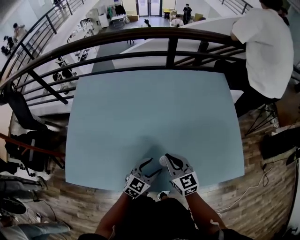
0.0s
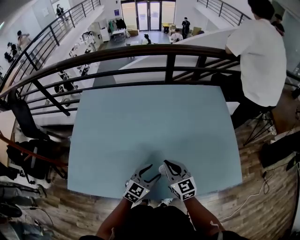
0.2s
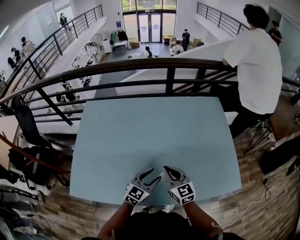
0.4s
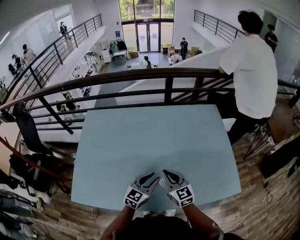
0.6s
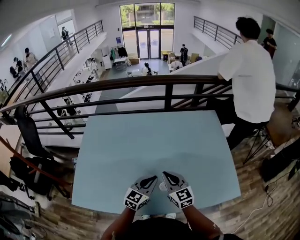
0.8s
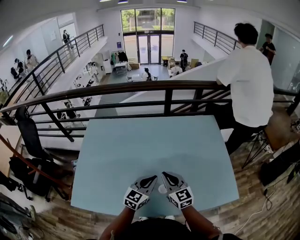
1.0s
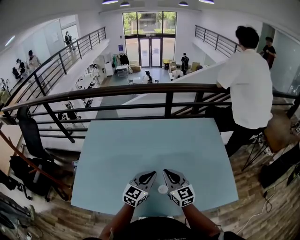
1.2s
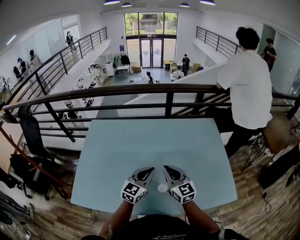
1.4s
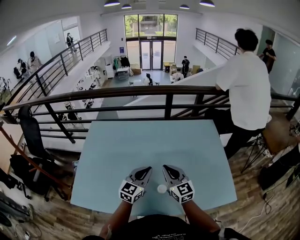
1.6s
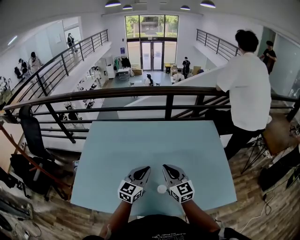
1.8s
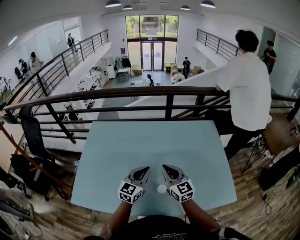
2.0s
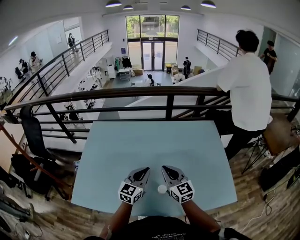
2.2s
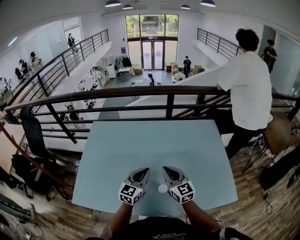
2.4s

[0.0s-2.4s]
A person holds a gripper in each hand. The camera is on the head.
0.0s to 1.2s: The left gripper is displaced upward by roughly 15 cm, and closes its fingers; the right gripper heads upward, covering about 10 cm.
1.2s to 2.4s: The grippers make only small movements.

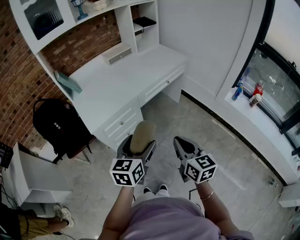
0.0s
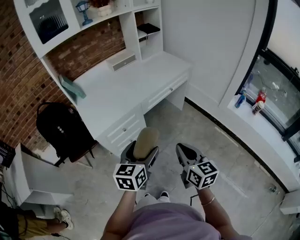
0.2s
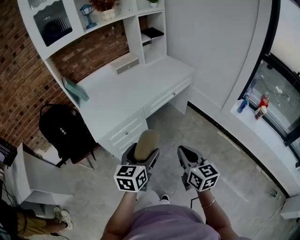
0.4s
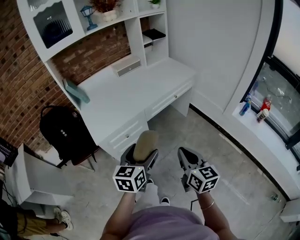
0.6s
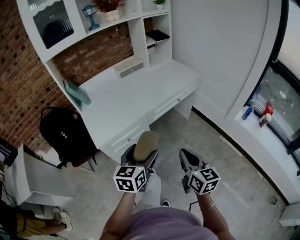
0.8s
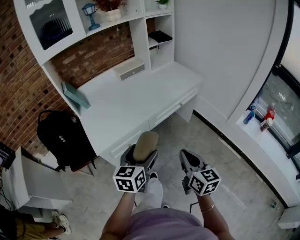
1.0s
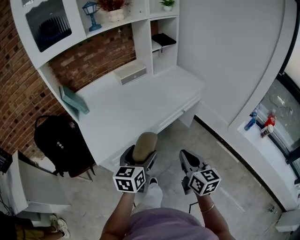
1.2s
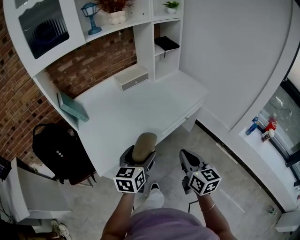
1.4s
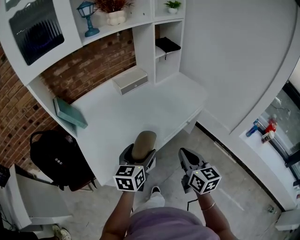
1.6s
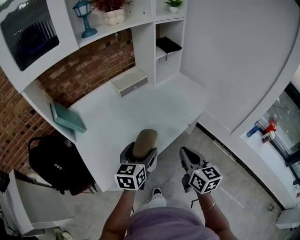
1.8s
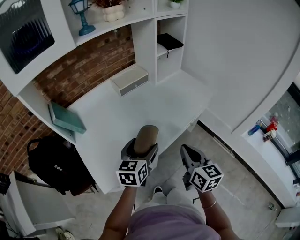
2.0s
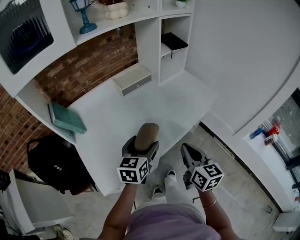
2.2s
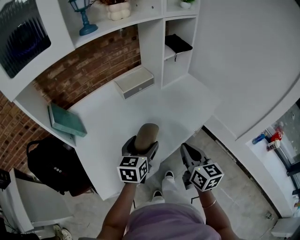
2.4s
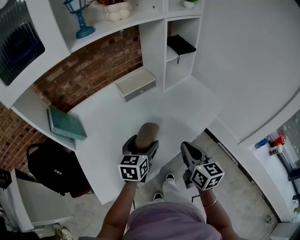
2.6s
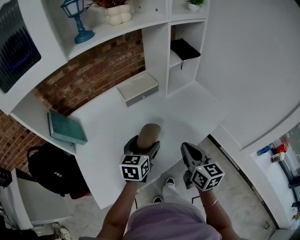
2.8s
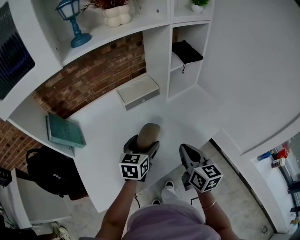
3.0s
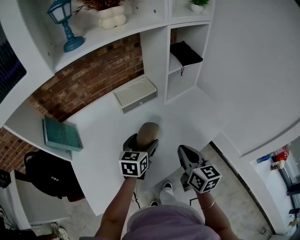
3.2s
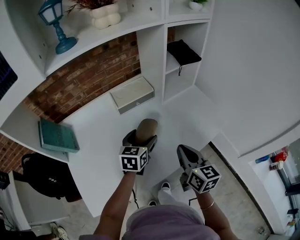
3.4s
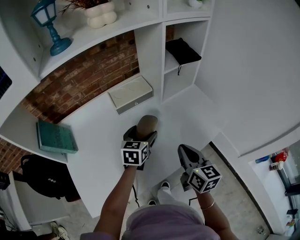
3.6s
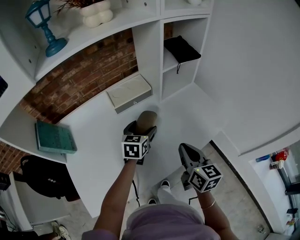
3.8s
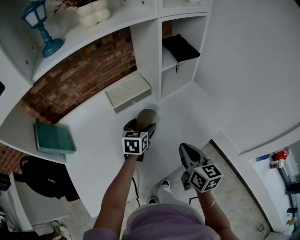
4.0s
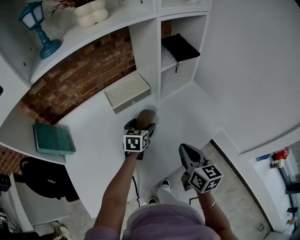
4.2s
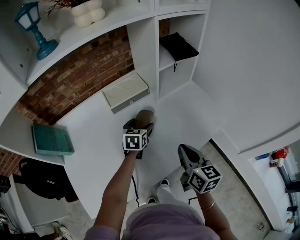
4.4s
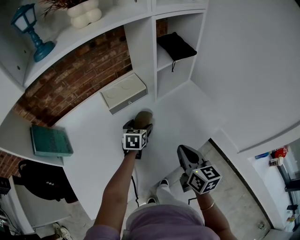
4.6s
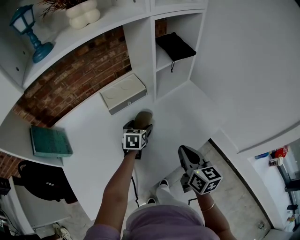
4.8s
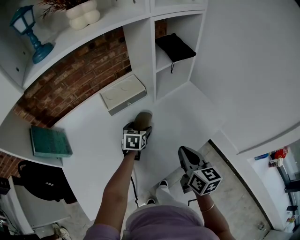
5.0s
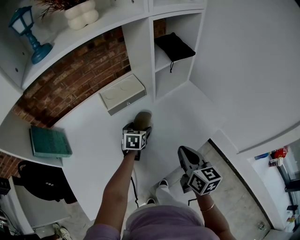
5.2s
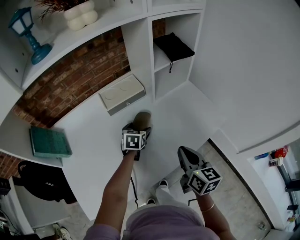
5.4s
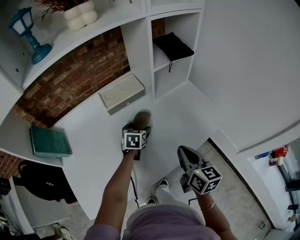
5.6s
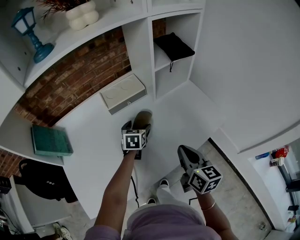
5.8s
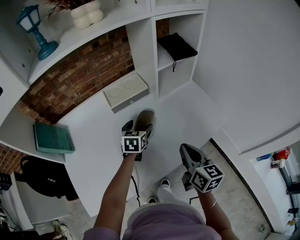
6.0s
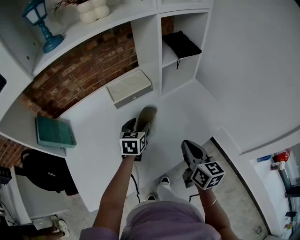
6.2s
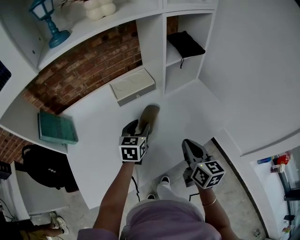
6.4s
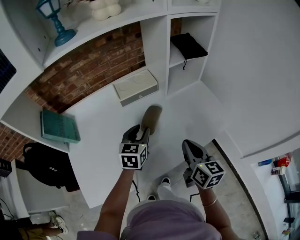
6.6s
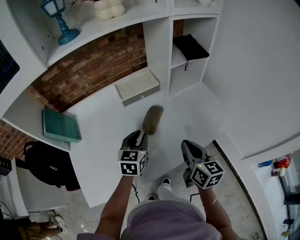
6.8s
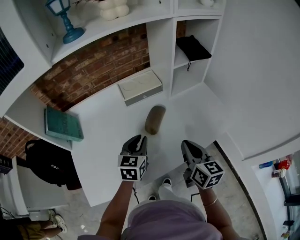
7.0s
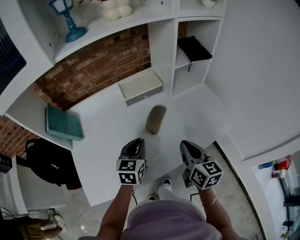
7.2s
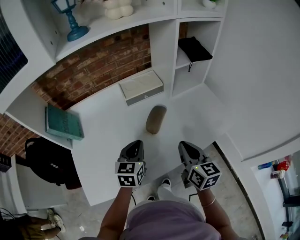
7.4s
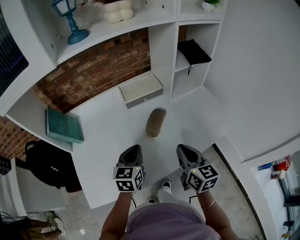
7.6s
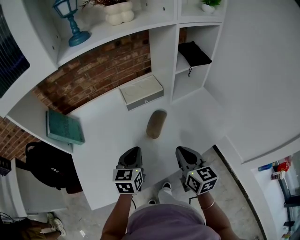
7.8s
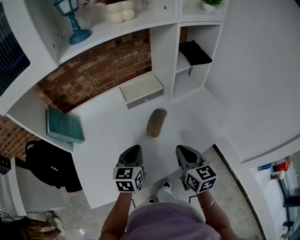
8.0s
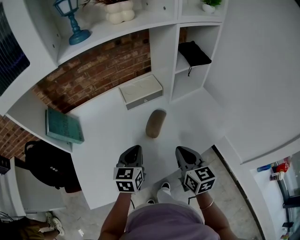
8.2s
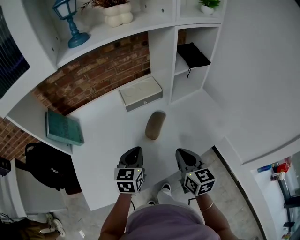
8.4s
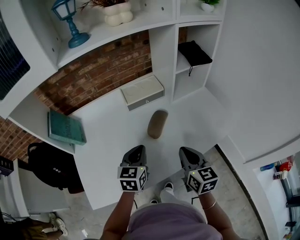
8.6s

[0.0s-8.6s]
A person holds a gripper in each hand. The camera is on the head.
0.0s to 1.4s: The grippers both shift forward by approximately 20 cm.
1.4s to 2.8s: Both grippers travel together forward, roughly 25 cm.
2.8s to 4.4s: The right gripper is displaced forward and to the right by about 10 cm; the left gripper heads forward and downward, covering about 20 cm.
4.4s to 5.8s: The grippers stay close to where they were, moving slightly.
5.8s to 7.2s: The left gripper travels backward, upward and to the left by approximately 20 cm, and closes its fingers.
7.2s to 8.6s: The grippers move only a little.

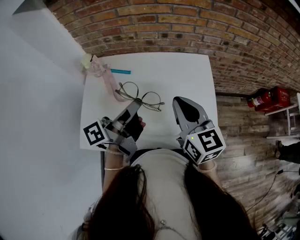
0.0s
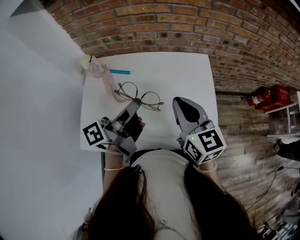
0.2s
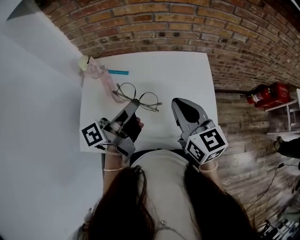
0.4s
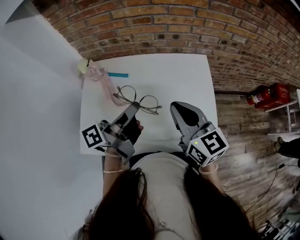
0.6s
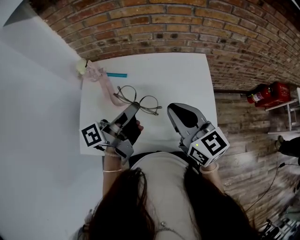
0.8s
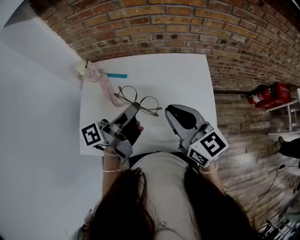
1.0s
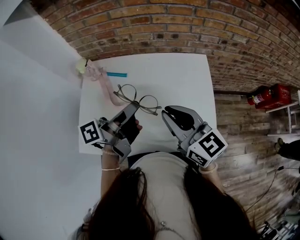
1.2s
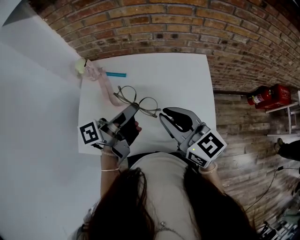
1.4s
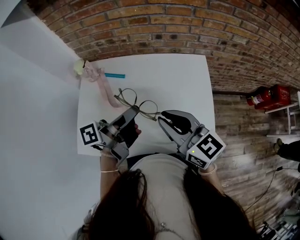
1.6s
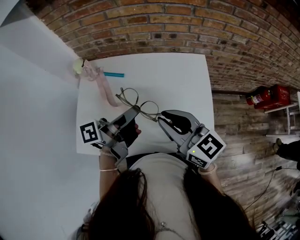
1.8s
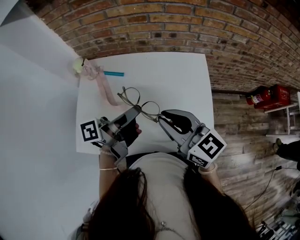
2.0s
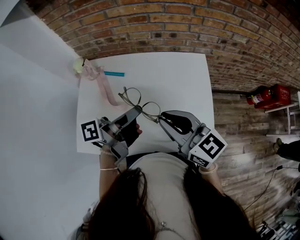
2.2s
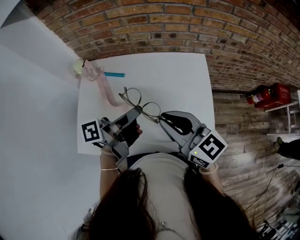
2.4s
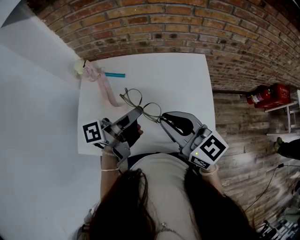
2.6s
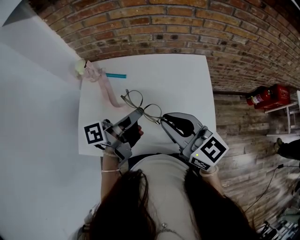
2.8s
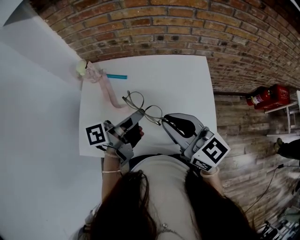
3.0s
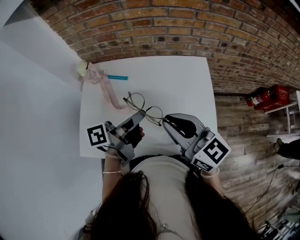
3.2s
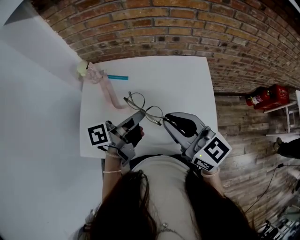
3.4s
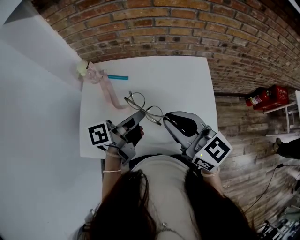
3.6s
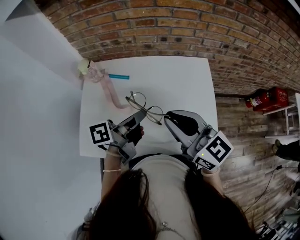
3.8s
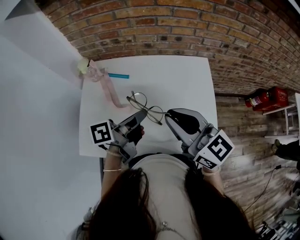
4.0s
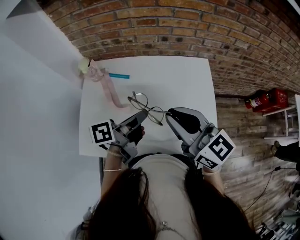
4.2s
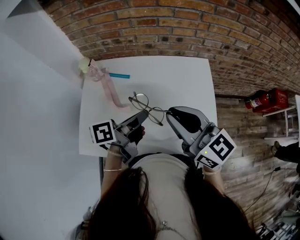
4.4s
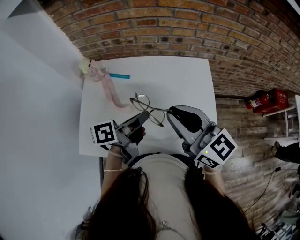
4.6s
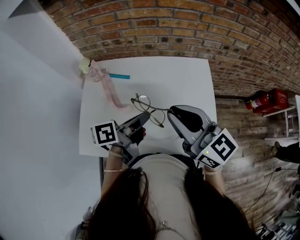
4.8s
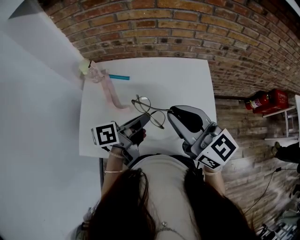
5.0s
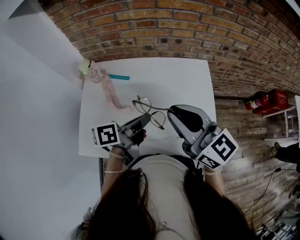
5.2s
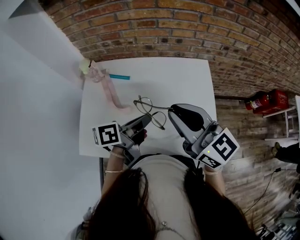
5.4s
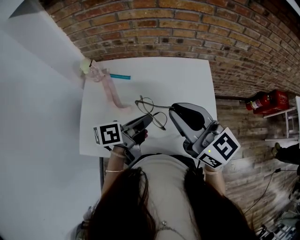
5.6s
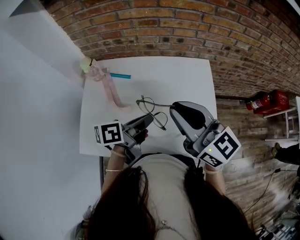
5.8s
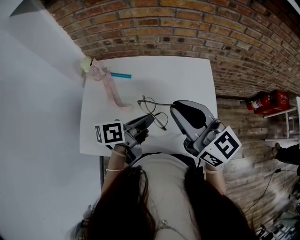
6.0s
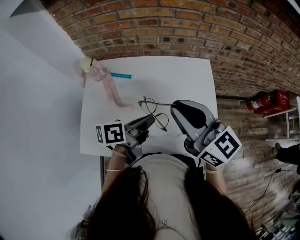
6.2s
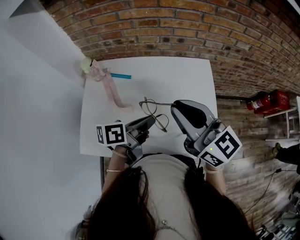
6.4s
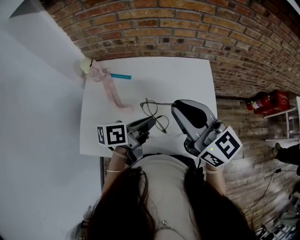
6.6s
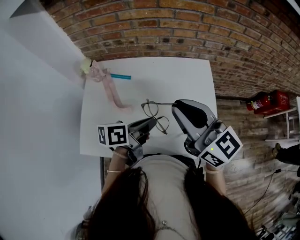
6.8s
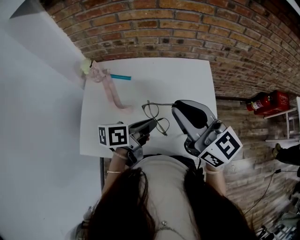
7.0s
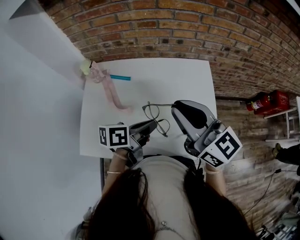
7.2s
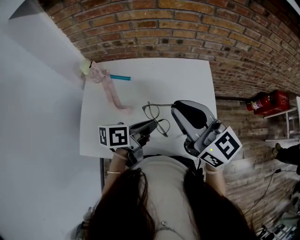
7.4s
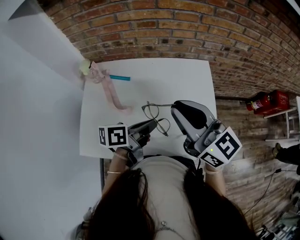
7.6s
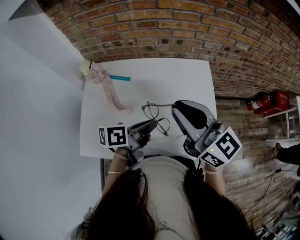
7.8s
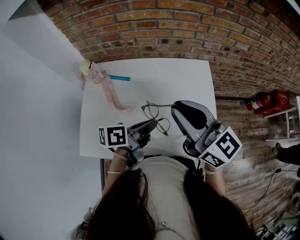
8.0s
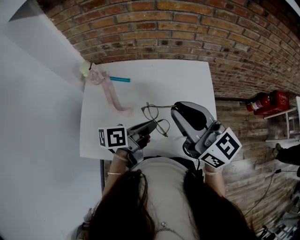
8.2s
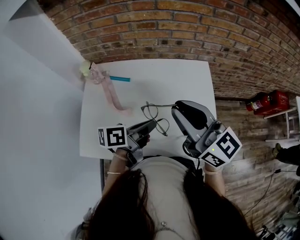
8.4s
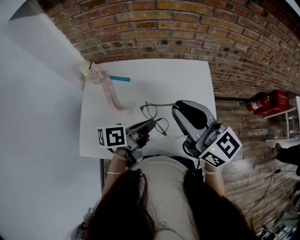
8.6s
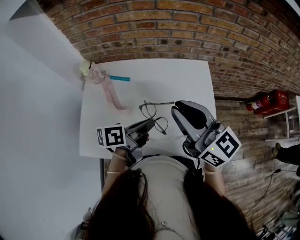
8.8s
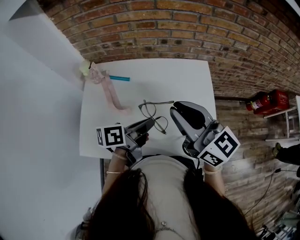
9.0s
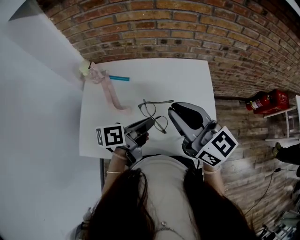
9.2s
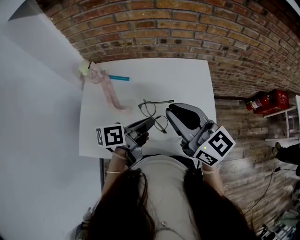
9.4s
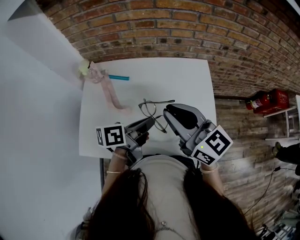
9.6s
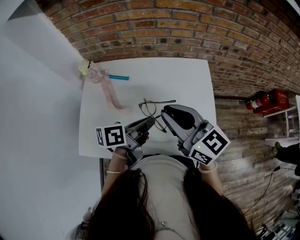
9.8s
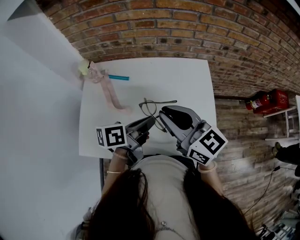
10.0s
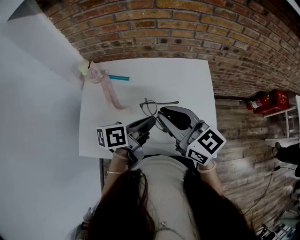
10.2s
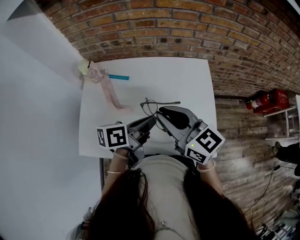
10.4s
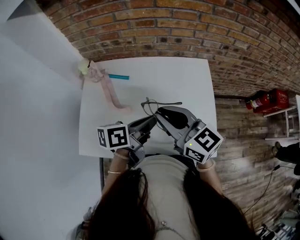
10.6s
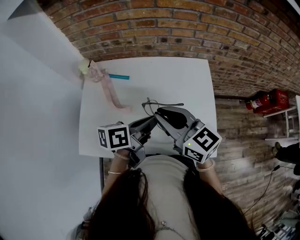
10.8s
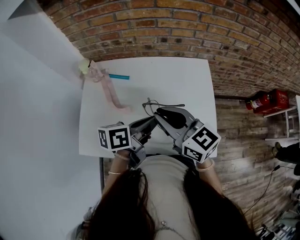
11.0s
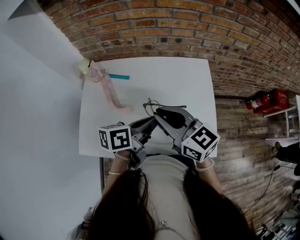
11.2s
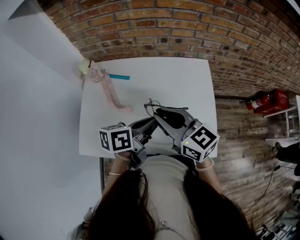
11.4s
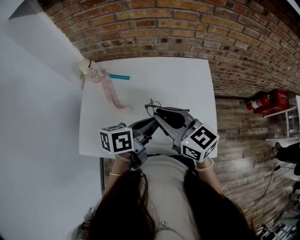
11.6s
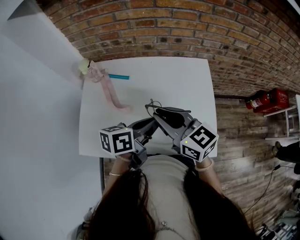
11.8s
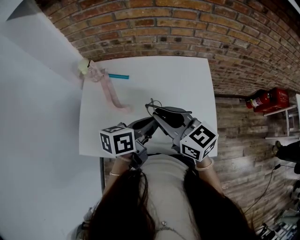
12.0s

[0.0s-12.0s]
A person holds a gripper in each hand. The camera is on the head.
0.0s to 1.6s: The right gripper changes its angle by roughly 20 degrees.
1.6s to 4.4s: The grippers move only a little.
4.4s to 6.0s: The grippers stay close to where they were, moving slightly.
6.0s to 7.6s: There are only small adjustments of the grippers.
7.6s to 9.0s: Both grippers stay about where they are.
9.0s to 10.4s: The right gripper changes place by some 5 cm.
10.4s to 12.0s: The grippers move only a little.

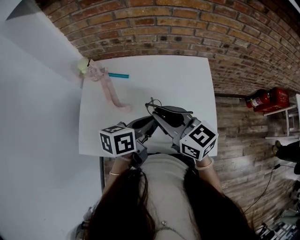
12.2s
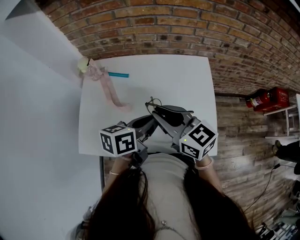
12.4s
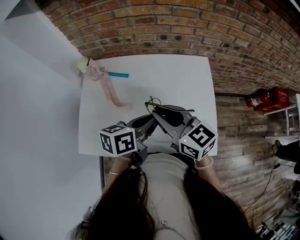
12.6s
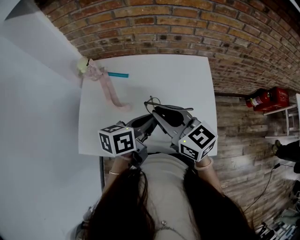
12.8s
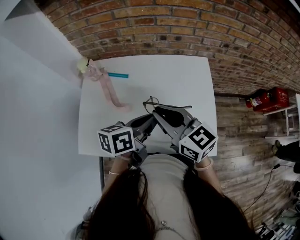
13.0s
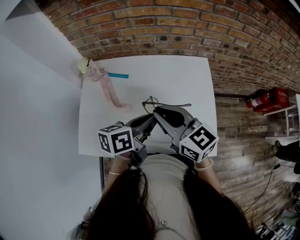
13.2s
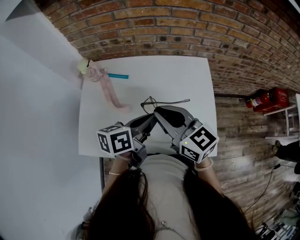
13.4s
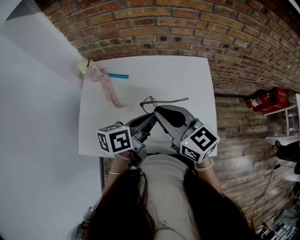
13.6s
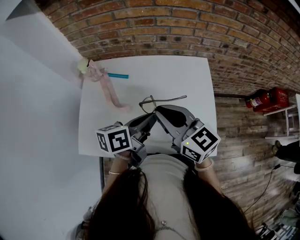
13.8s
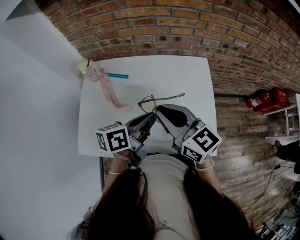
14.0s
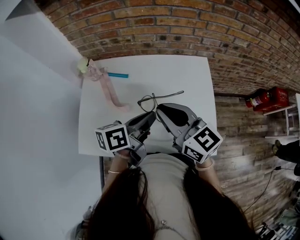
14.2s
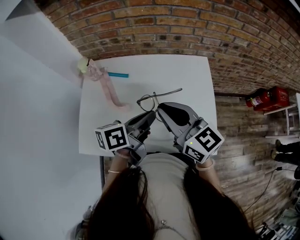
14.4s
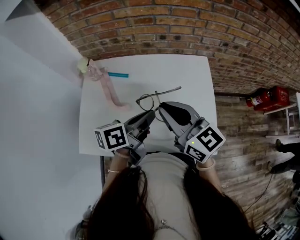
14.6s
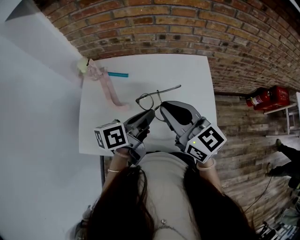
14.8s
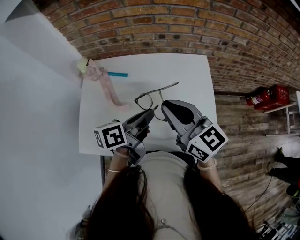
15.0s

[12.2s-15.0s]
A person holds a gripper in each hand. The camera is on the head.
12.2s to 15.0s: The grippers make only small movements.
